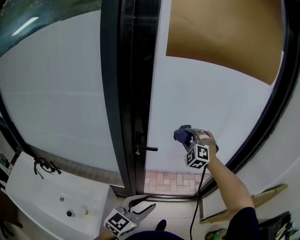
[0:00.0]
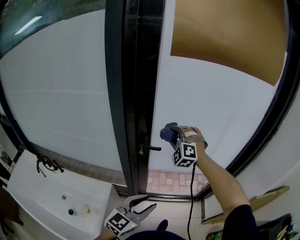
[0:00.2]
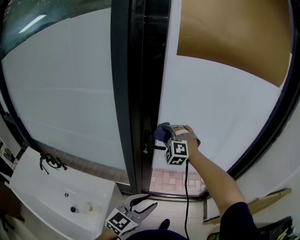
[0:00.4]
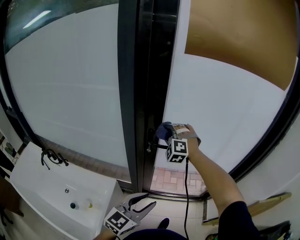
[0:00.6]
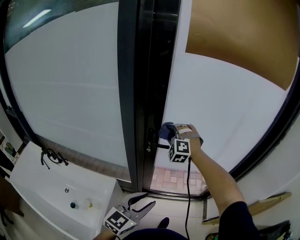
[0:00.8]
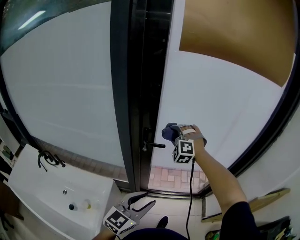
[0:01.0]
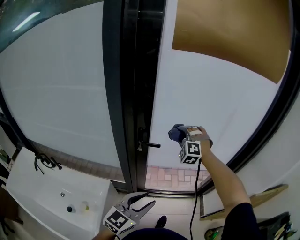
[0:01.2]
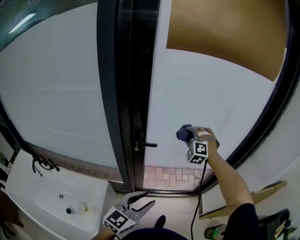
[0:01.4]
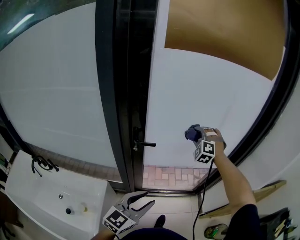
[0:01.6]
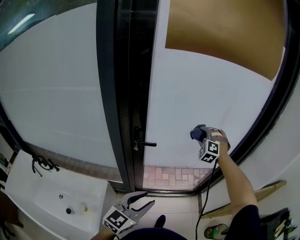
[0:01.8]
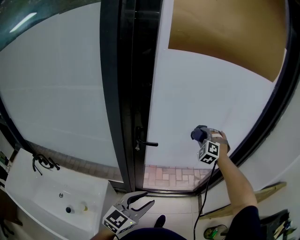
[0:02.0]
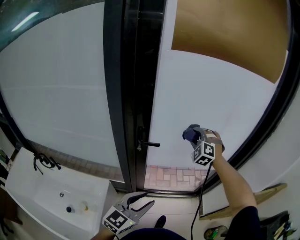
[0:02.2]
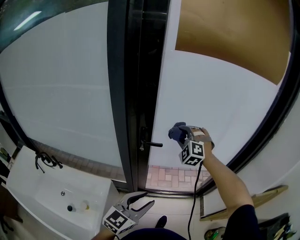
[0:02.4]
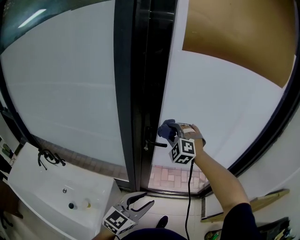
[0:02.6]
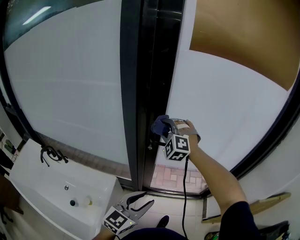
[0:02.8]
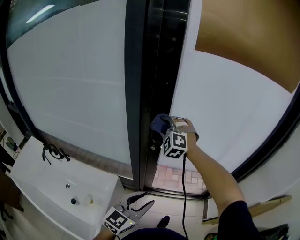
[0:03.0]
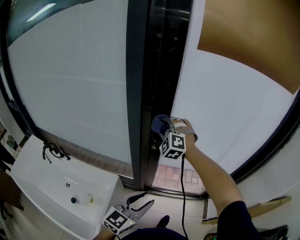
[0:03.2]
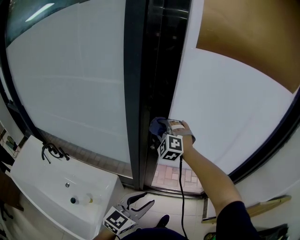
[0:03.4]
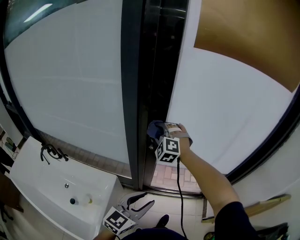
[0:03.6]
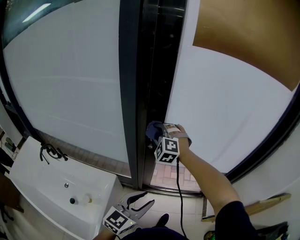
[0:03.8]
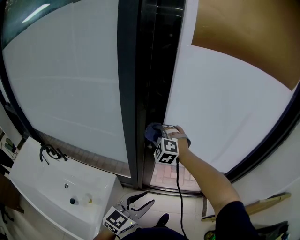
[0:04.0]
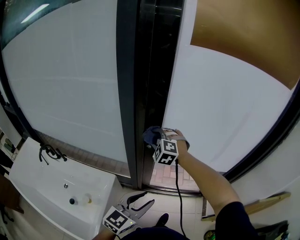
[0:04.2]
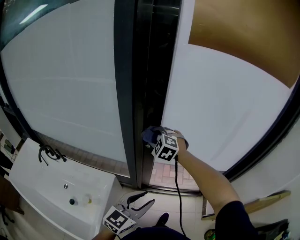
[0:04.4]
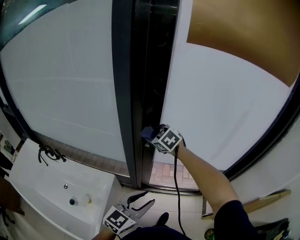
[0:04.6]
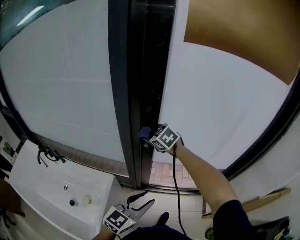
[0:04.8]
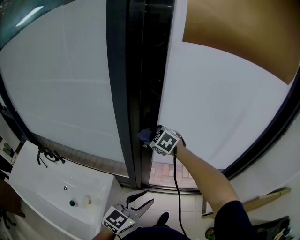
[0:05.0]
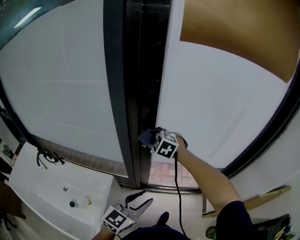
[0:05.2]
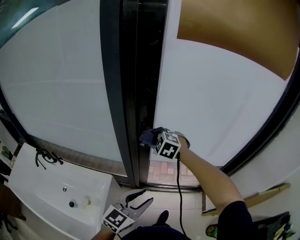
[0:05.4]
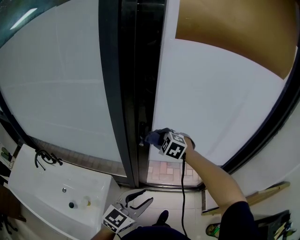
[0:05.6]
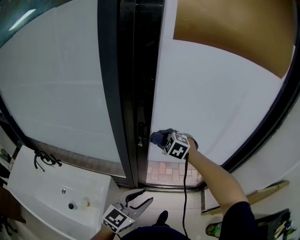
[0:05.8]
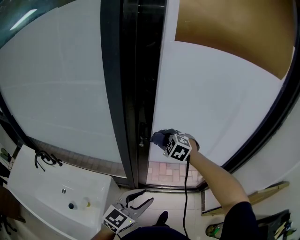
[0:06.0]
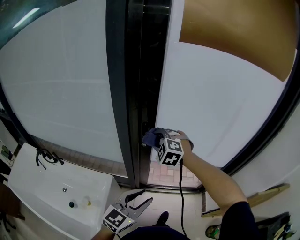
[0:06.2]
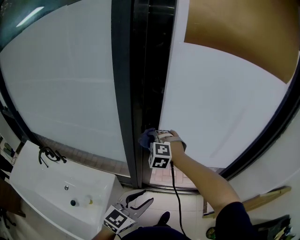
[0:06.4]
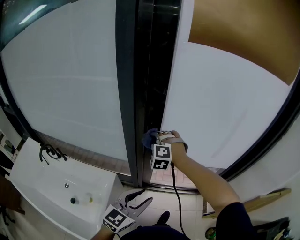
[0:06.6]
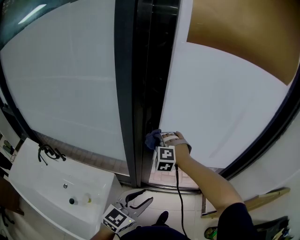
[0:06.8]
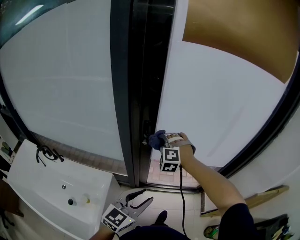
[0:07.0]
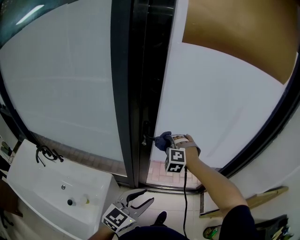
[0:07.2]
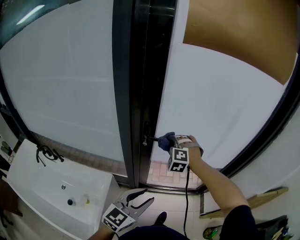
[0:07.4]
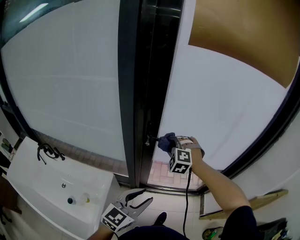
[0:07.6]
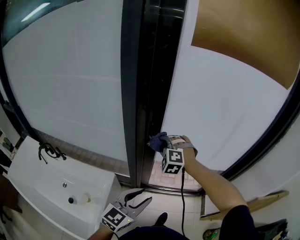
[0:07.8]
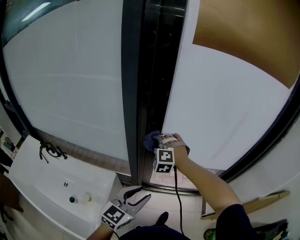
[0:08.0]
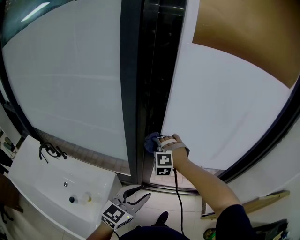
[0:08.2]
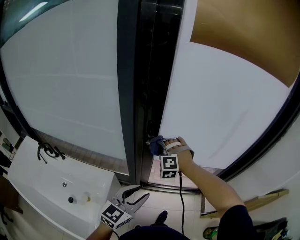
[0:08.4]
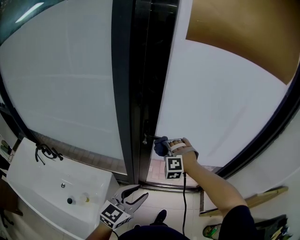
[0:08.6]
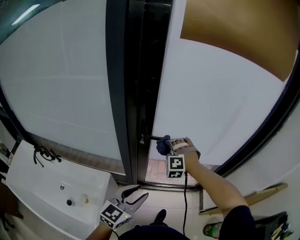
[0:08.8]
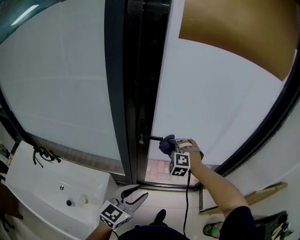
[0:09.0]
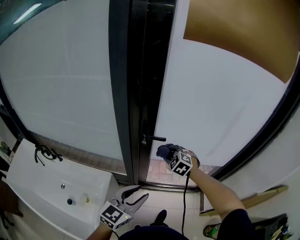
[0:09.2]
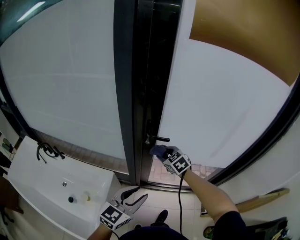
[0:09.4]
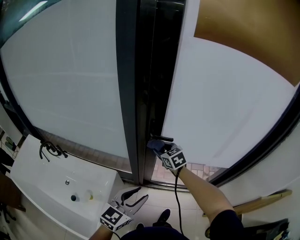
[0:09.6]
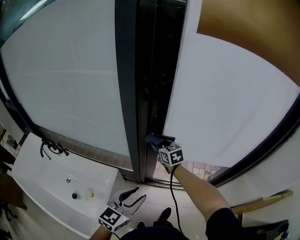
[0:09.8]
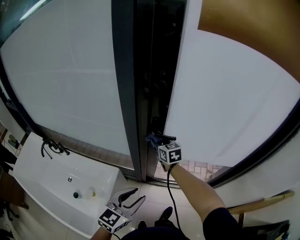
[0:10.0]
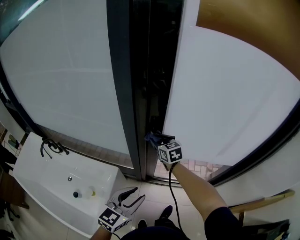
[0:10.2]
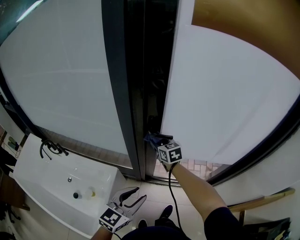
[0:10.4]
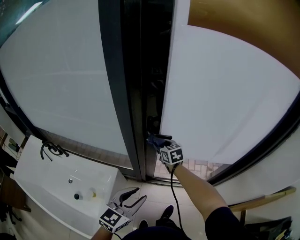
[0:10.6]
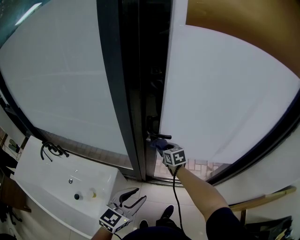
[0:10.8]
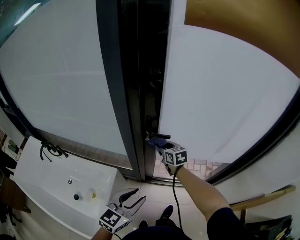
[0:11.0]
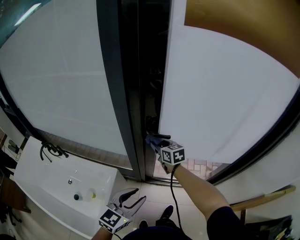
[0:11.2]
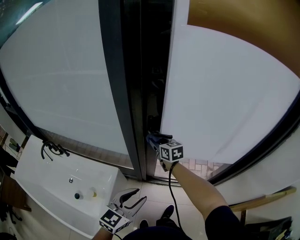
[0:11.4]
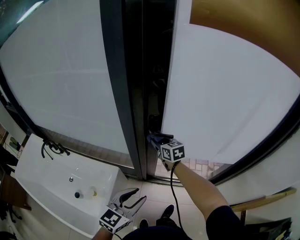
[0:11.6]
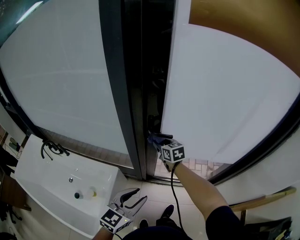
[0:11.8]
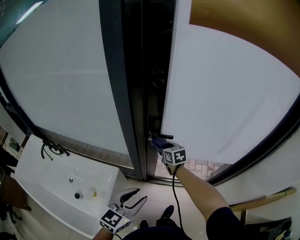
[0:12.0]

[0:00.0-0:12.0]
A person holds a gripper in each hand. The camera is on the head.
0:00.0 to 0:01.6: The right gripper goes to the left and returns, roughly 15 cm each way.
0:01.6 to 0:03.0: The right gripper shifts about 25 cm to the left, and changes its angle by some 20 degrees. The left gripper is displaced to the left by about 5 cm.
0:03.0 to 0:04.4: The right gripper heads downward, covering approximately 10 cm, and turns by approximately 20 degrees.
0:04.4 to 0:06.0: The right gripper is displaced to the right by approximately 10 cm.
0:06.0 to 0:07.6: The right gripper reaches some 10 cm to the left, then returns, and swivels roughly 20 degrees.
0:07.6 to 0:09.0: The right gripper reaches approximately 10 cm to the left, then returns.
0:09.0 to 0:10.4: The right gripper goes approximately 10 cm to the left and forward, and rolls clockwise, seen from behind, by roughly 70 degrees.
0:10.4 to 0:12.0: The right gripper moves up and down over some 5 cm, changing direction 2 times.

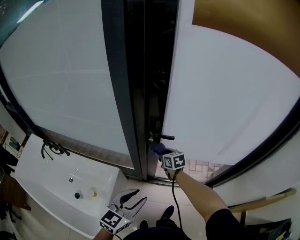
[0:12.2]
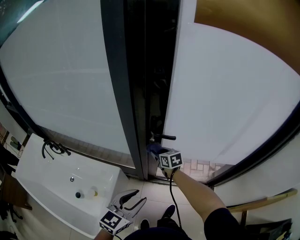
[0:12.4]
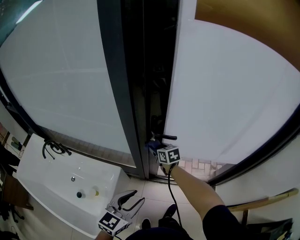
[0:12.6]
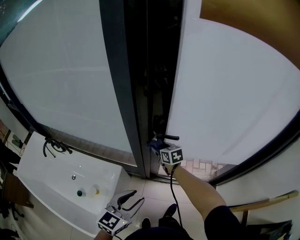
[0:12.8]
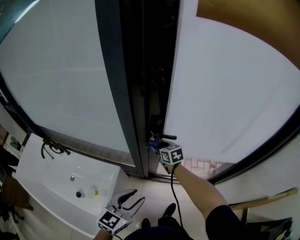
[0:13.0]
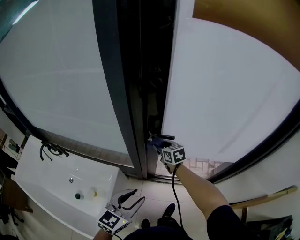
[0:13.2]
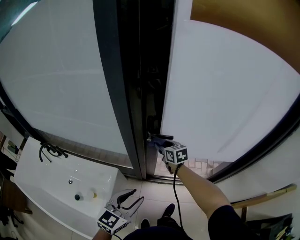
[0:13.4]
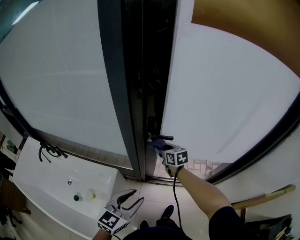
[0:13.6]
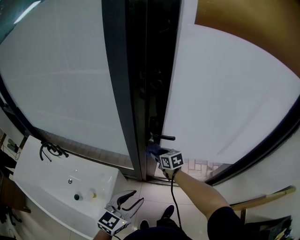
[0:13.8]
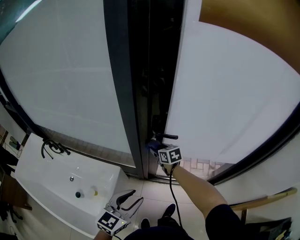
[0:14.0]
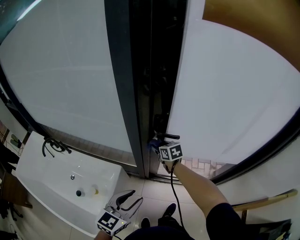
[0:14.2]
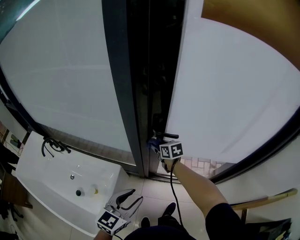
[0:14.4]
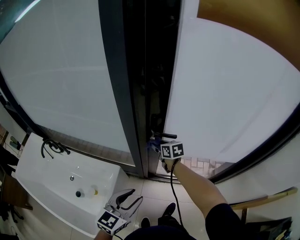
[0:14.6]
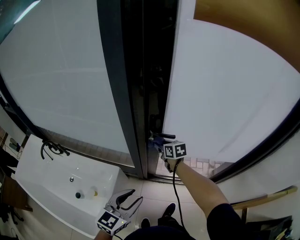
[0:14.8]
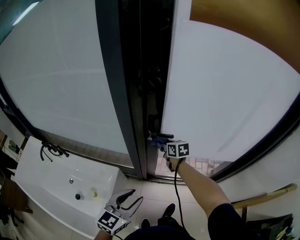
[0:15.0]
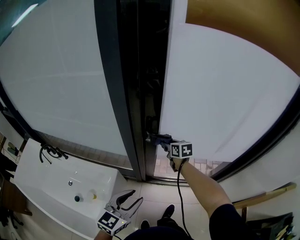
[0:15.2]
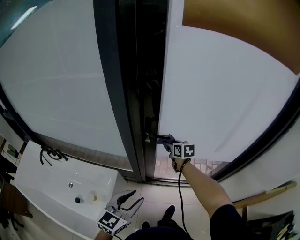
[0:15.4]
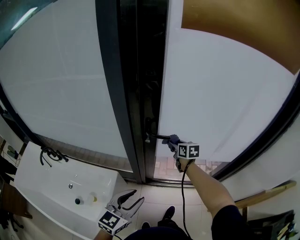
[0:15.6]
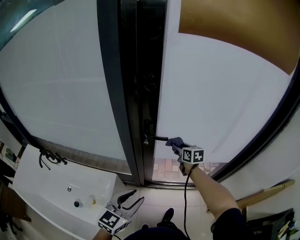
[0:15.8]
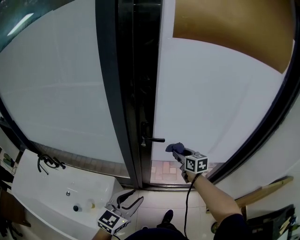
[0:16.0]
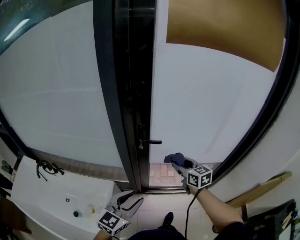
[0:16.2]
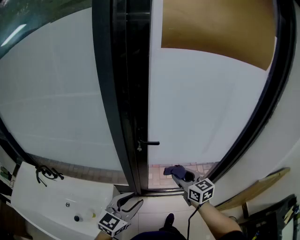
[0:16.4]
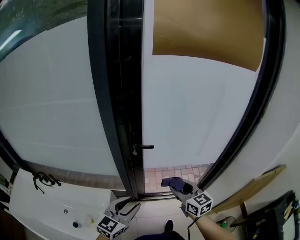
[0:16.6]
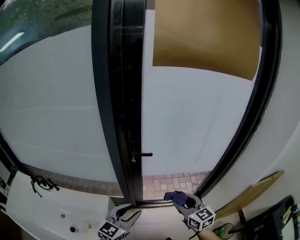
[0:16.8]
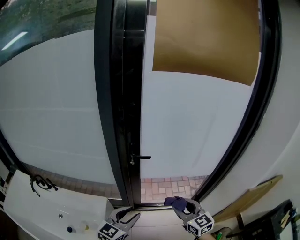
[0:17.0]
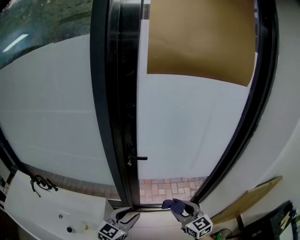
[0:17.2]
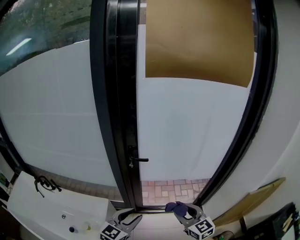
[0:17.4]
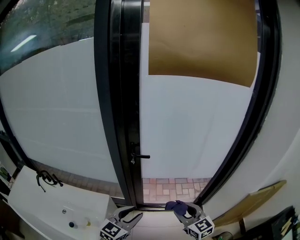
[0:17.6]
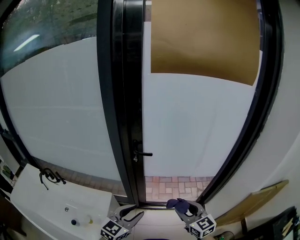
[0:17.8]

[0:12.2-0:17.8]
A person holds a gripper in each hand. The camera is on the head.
0:12.2 to 0:15.0: There are only small adjustments of the grippers.
0:15.0 to 0:16.4: The left gripper shifts by some 5 cm, while the right gripper goes some 25 cm backward, upward and to the right, and rotates about 20 degrees.
0:16.4 to 0:17.8: The right gripper travels backward and to the right by about 15 cm; the left gripper travels to the right by approximately 5 cm.

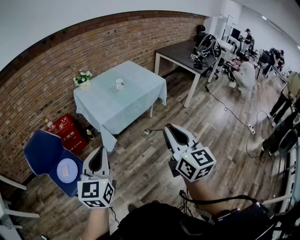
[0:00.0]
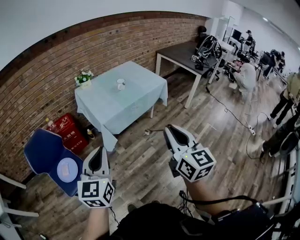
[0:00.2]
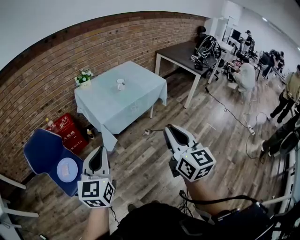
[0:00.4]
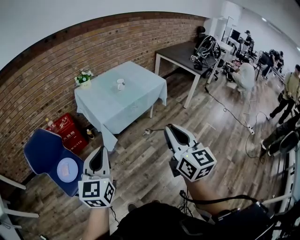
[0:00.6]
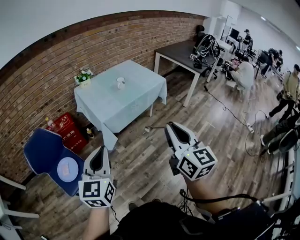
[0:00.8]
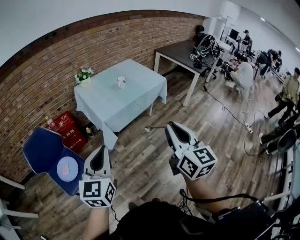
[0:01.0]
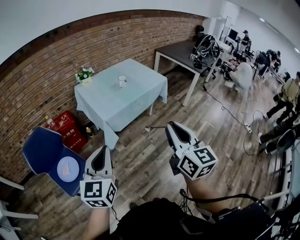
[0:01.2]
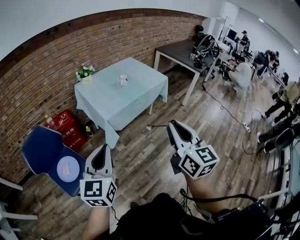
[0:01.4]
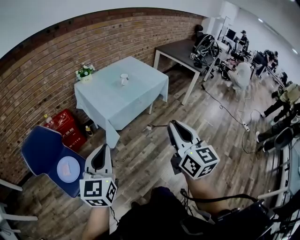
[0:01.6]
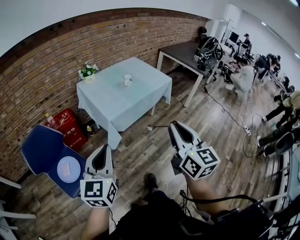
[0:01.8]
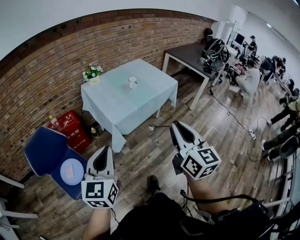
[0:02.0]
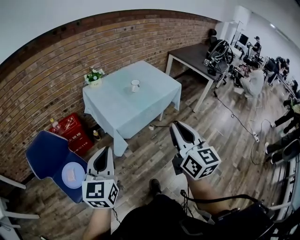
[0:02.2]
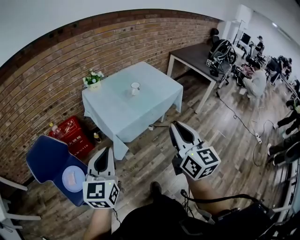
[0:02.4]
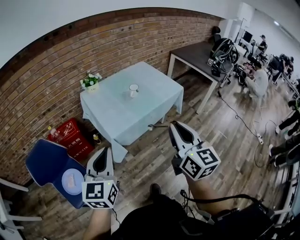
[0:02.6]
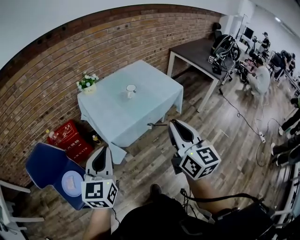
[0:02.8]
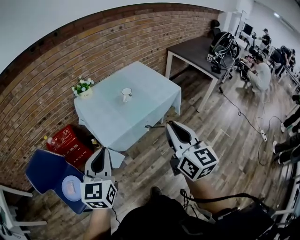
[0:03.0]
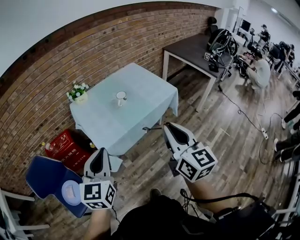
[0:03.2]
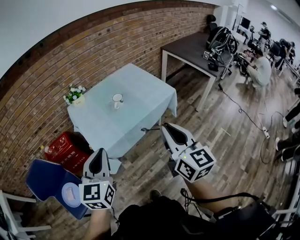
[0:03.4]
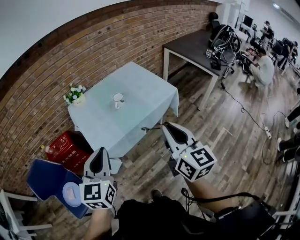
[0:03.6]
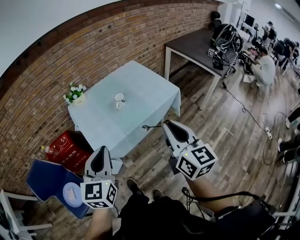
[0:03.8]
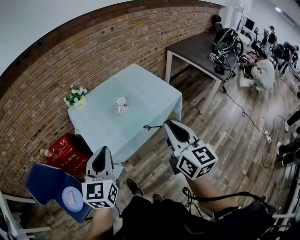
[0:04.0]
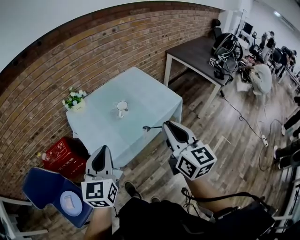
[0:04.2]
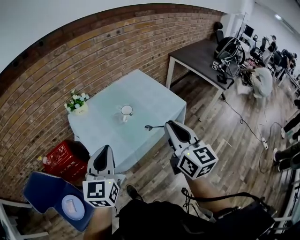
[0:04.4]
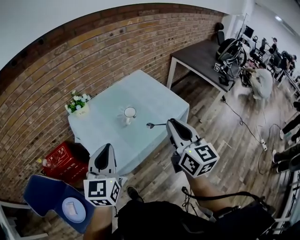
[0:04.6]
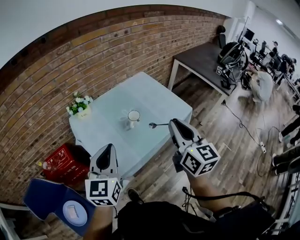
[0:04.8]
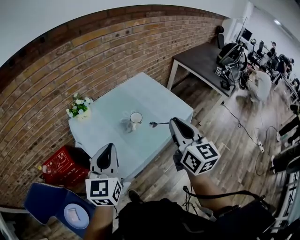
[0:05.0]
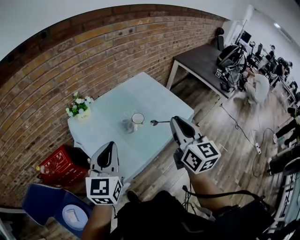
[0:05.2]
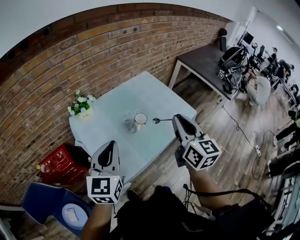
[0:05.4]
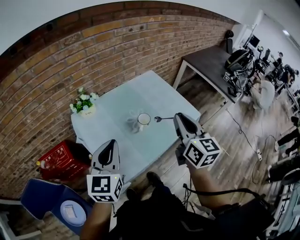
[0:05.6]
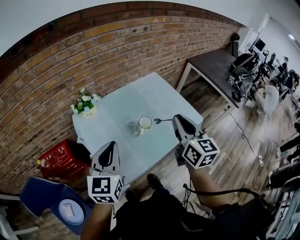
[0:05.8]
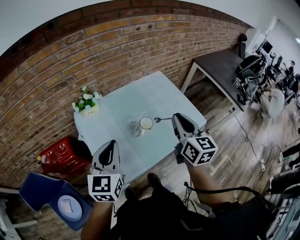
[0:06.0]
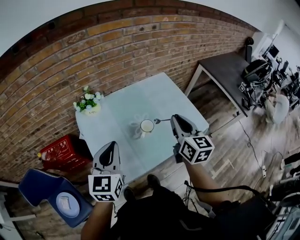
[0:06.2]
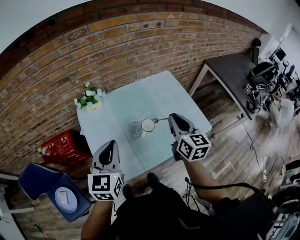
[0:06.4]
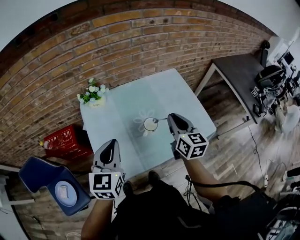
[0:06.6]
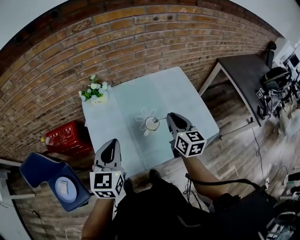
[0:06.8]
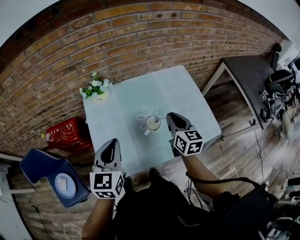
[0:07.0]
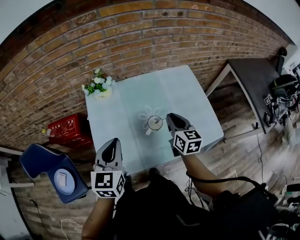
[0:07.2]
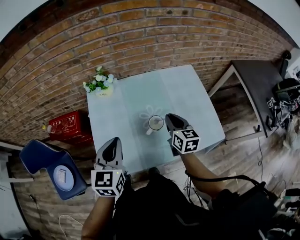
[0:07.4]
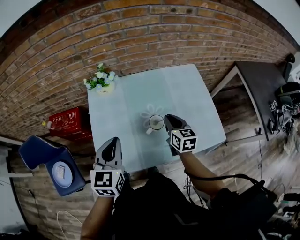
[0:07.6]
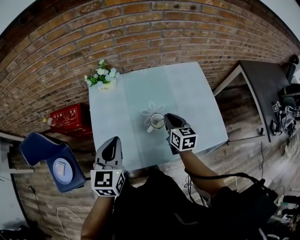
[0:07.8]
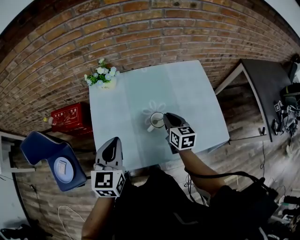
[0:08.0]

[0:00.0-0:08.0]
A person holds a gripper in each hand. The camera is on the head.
0:00.0 to 0:01.6: Both grippers travel together to the left, approximately 5 cm.
0:01.6 to 0:03.2: The right gripper shifts roughly 25 cm forward; the left gripper goes approximately 25 cm forward and to the right.
0:03.2 to 0:04.8: Both grippers move forward, roughly 20 cm.
0:04.8 to 0:06.4: The left gripper goes roughly 10 cm forward. Meanwhile the right gripper moves forward and downward, some 20 cm.
0:06.4 to 0:08.0: The right gripper shifts some 20 cm downward and forward, and swivels roughly 20 degrees. Meanwhile the left gripper goes some 5 cm downward.
